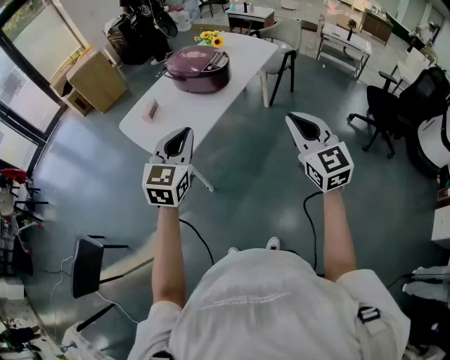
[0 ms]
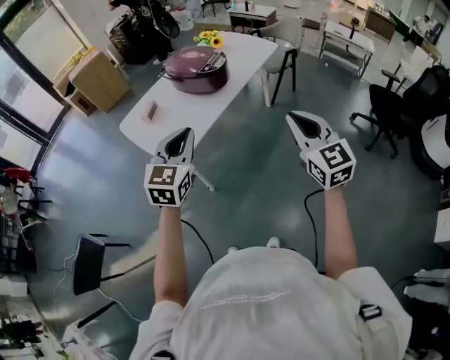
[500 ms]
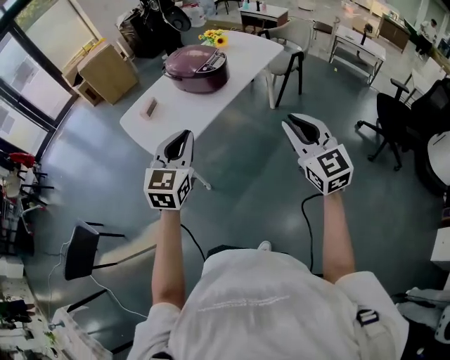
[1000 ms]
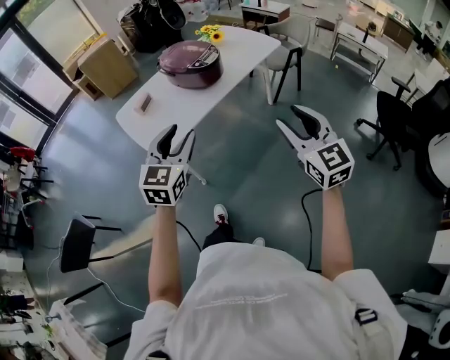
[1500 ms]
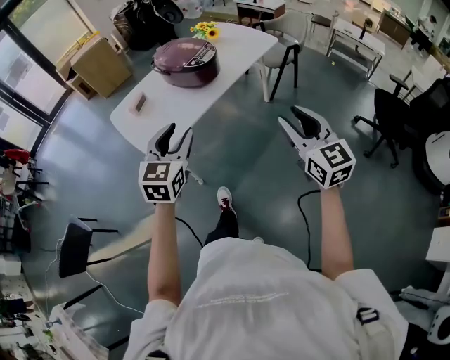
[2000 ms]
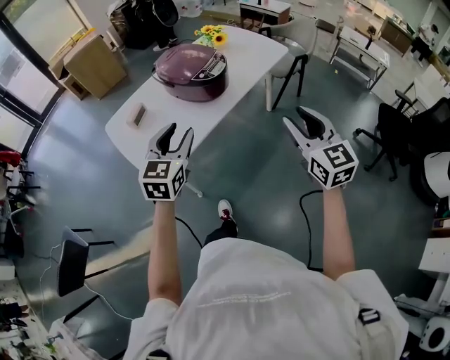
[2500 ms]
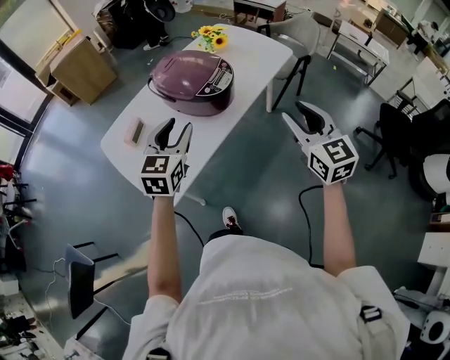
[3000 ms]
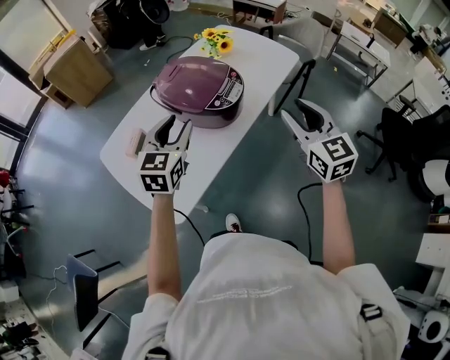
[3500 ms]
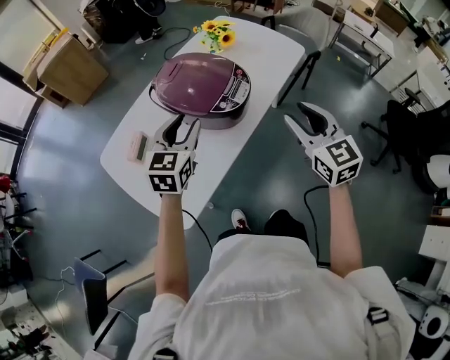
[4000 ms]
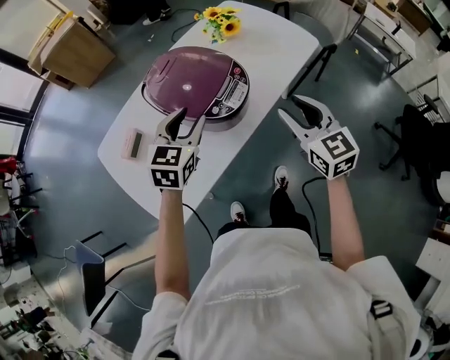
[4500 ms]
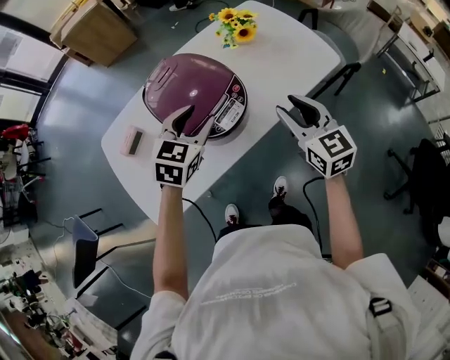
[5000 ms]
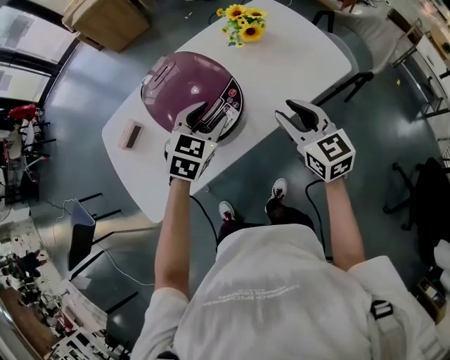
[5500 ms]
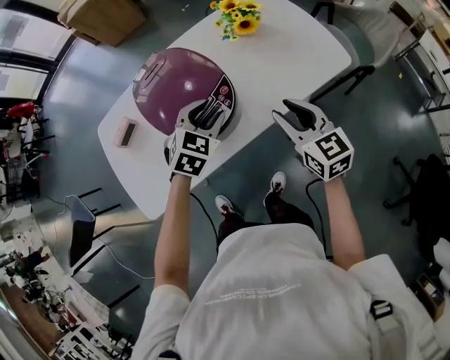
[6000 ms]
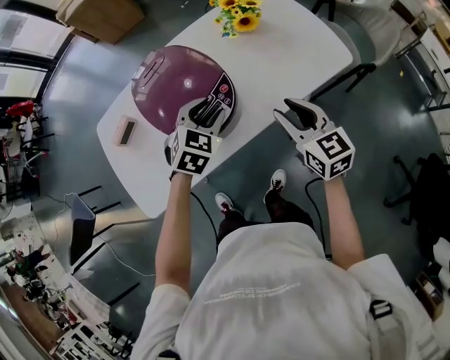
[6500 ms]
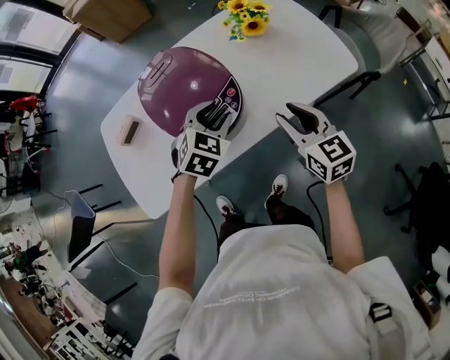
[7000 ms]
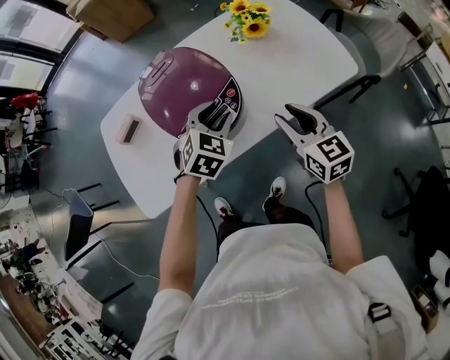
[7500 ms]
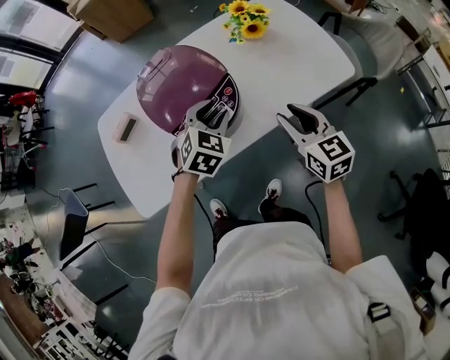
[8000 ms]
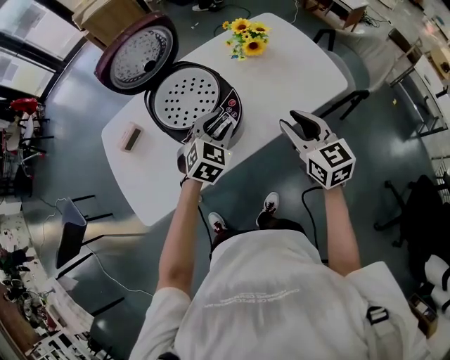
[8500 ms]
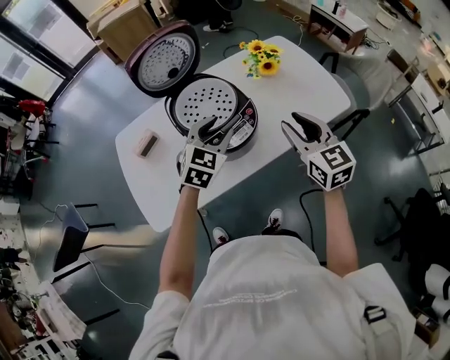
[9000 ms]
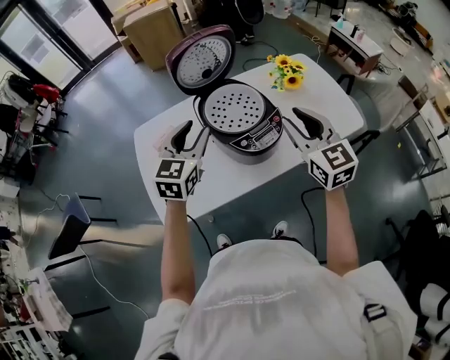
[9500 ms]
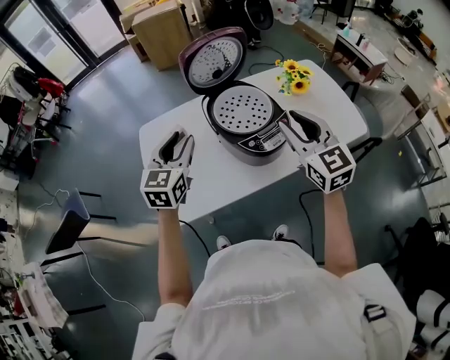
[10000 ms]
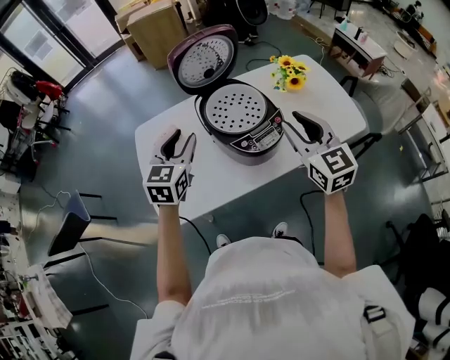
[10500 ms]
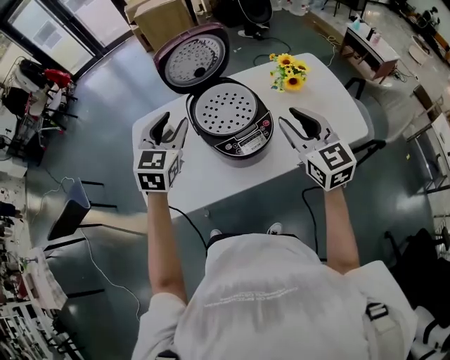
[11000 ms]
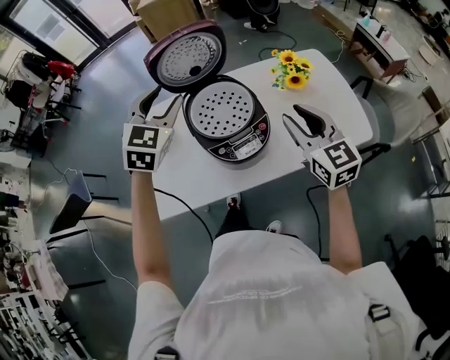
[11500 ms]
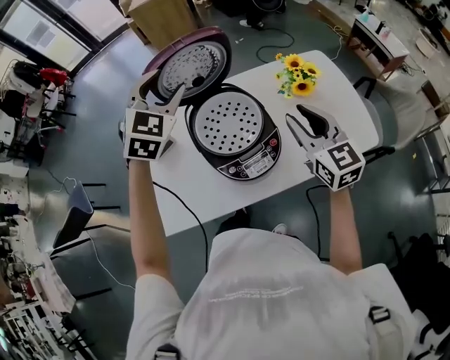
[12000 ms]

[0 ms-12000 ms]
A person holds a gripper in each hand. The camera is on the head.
0 ms to 2000 ms: The grippers both shift to the right by roughly 10 cm. The right gripper opens its fingers; the left gripper opens its fingers.
2000 ms to 4000 ms: The two grippers go approximately 35 cm forward.
4000 ms to 6000 ms: The right gripper is displaced forward, downward and to the right by some 25 cm, and swivels approximately 30 degrees. The left gripper goes roughly 25 cm to the right, forward and downward, and swivels about 30 degrees.
6000 ms to 8000 ms: The grippers make only small movements.
8000 ms to 10000 ms: The left gripper travels to the left and upward by some 30 cm, and rotates about 40 degrees; the right gripper moves upward and to the left, approximately 25 cm, and turns by some 20 degrees.
10000 ms to 12000 ms: The right gripper goes roughly 15 cm forward and to the right. The left gripper is displaced forward, to the right and upward by some 25 cm, and turns by approximately 40 degrees.

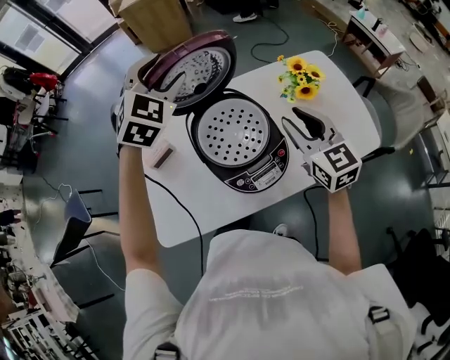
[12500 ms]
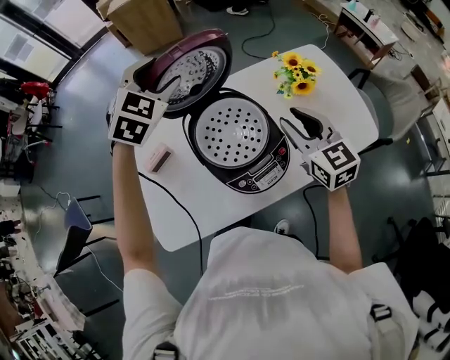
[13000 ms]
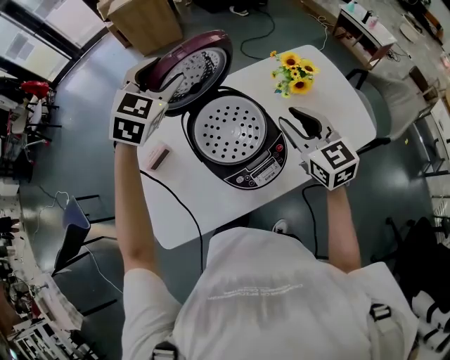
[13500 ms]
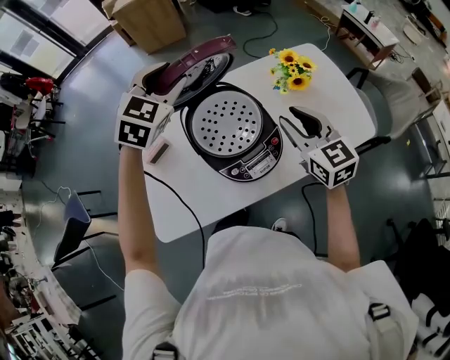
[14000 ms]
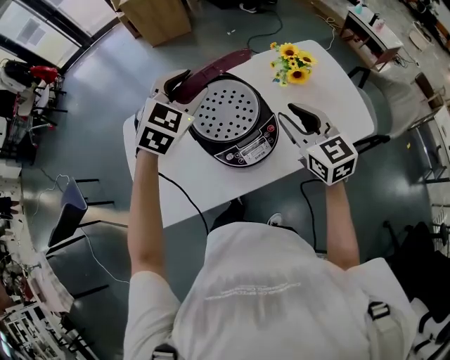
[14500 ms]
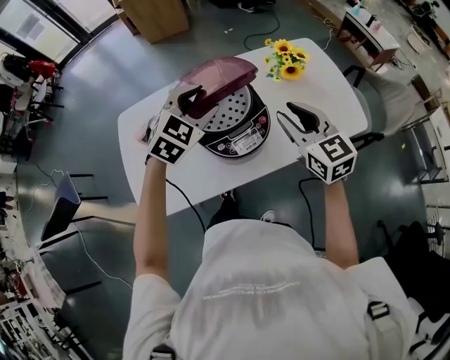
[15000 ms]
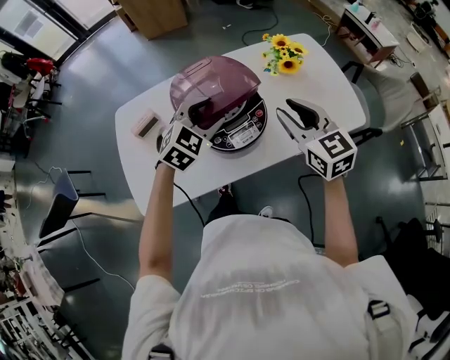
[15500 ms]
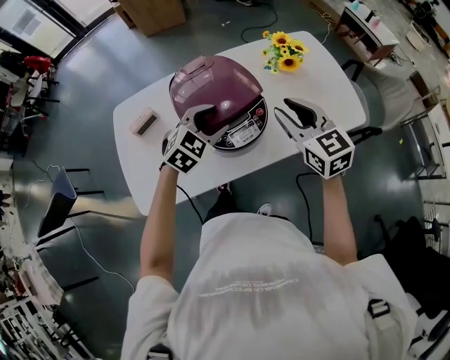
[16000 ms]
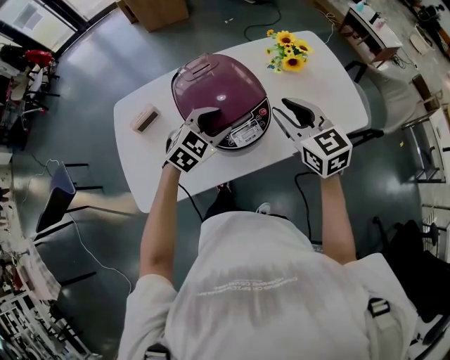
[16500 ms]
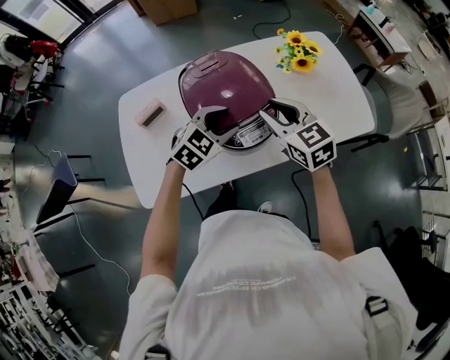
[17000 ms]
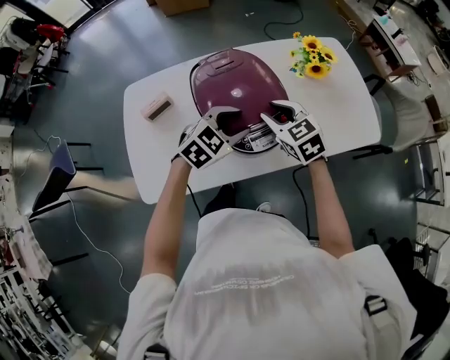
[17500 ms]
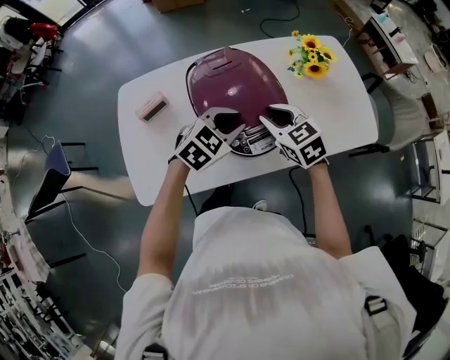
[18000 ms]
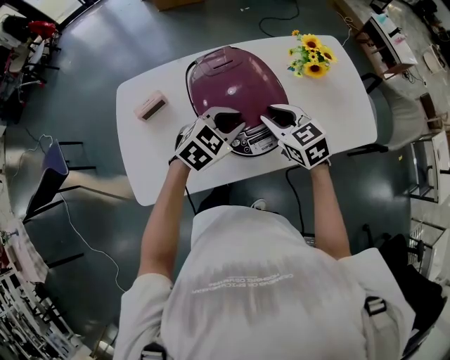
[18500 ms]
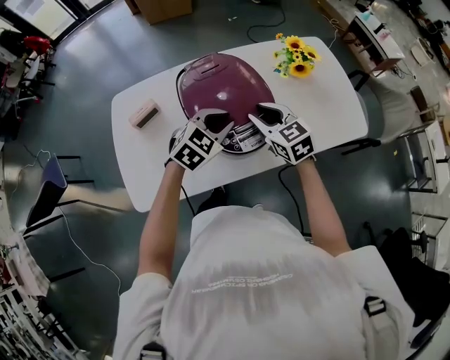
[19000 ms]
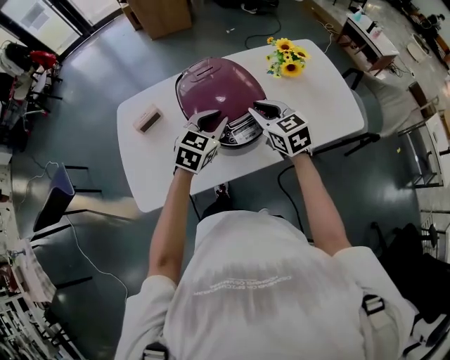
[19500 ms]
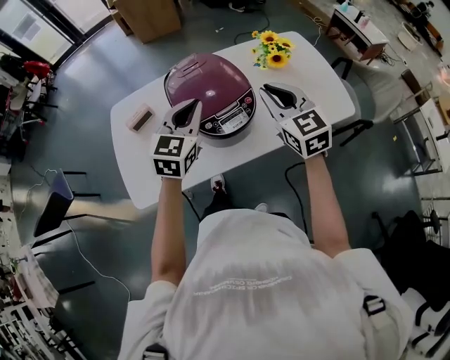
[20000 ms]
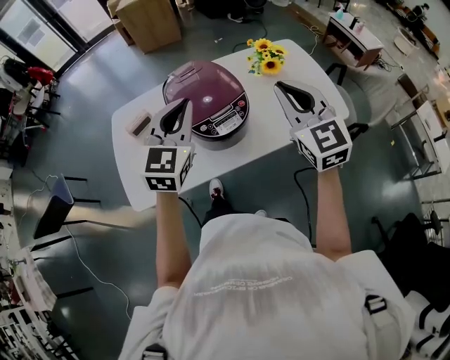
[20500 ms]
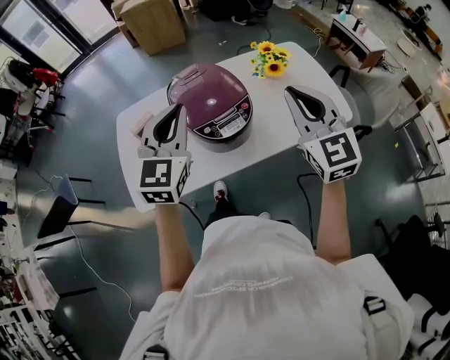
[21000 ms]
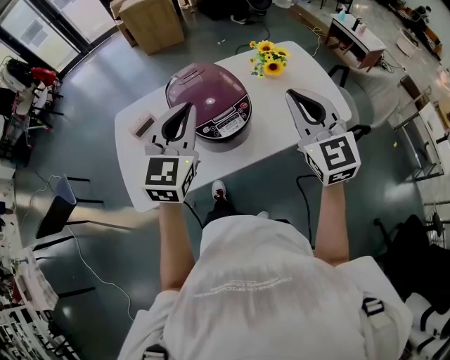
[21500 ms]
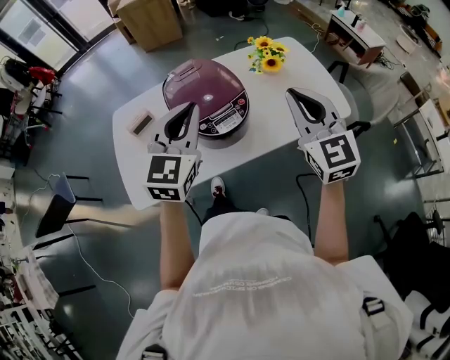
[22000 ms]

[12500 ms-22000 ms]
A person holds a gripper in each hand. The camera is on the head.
12500 ms to 14500 ms: The left gripper is displaced backward, downward and to the right by roughly 15 cm; the right gripper heads backward, covering some 5 cm.
14500 ms to 16500 ms: The left gripper shifts about 20 cm downward and backward.
16500 ms to 18000 ms: The right gripper moves downward and to the left, about 10 cm, and swivels about 20 degrees; the left gripper closes up.
18000 ms to 20000 ms: The right gripper is displaced upward and to the right by some 15 cm, and swivels some 30 degrees; the left gripper travels upward by about 10 cm, and swivels about 30 degrees.
20000 ms to 22000 ms: The left gripper travels upward and backward by roughly 10 cm. Meanwhile the right gripper goes approximately 10 cm upward, backward and to the right.

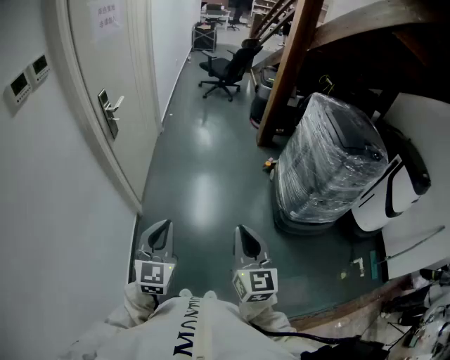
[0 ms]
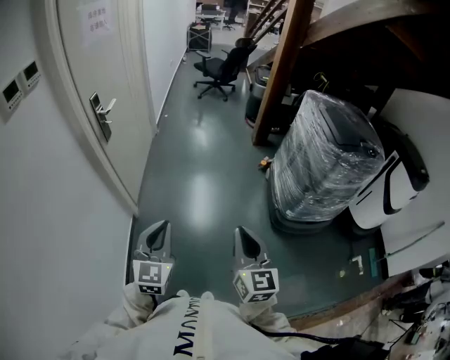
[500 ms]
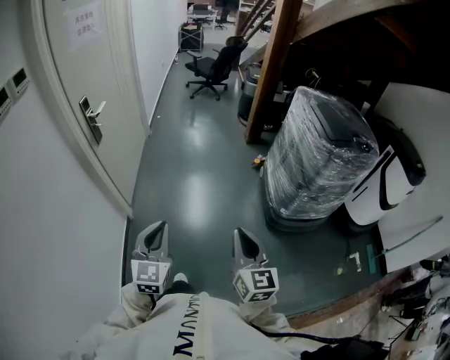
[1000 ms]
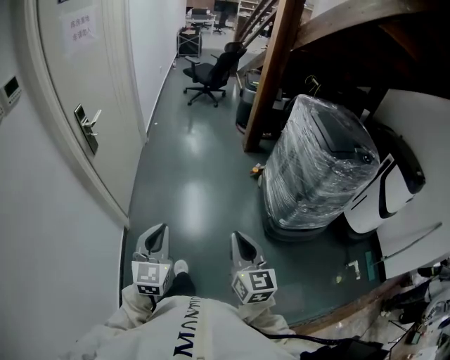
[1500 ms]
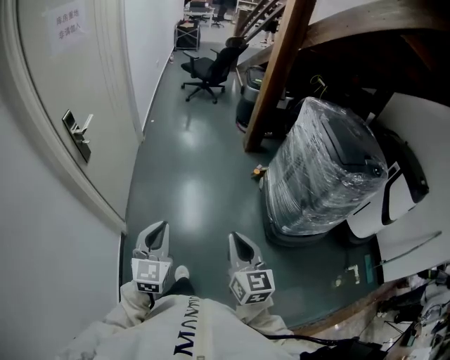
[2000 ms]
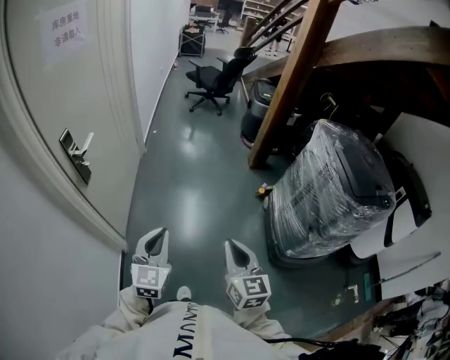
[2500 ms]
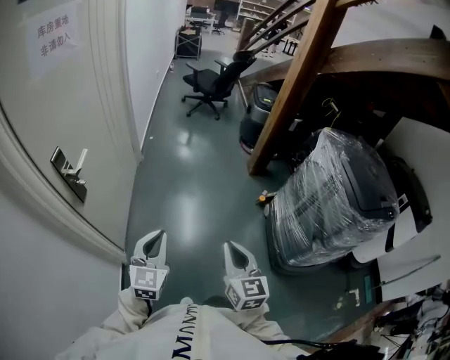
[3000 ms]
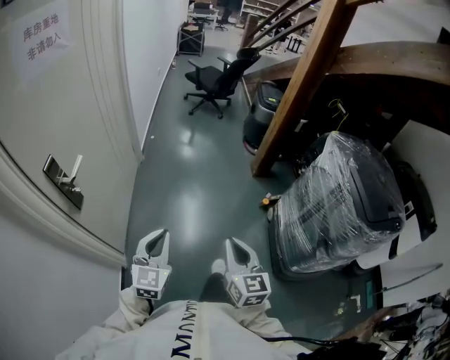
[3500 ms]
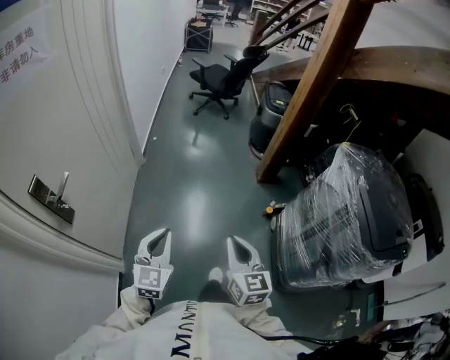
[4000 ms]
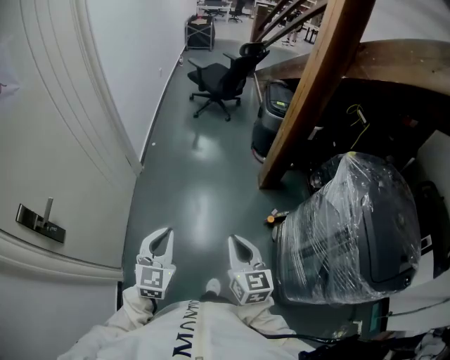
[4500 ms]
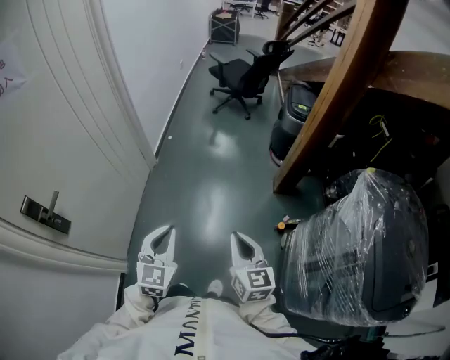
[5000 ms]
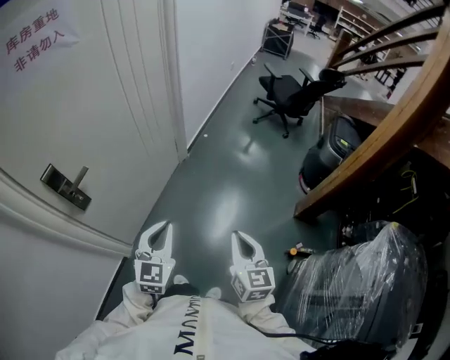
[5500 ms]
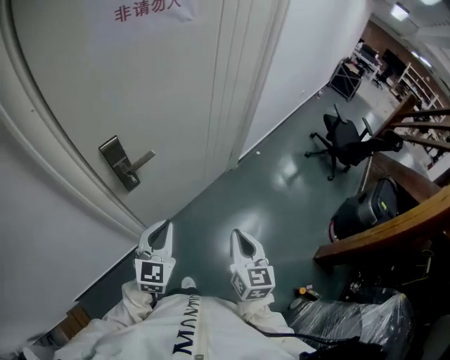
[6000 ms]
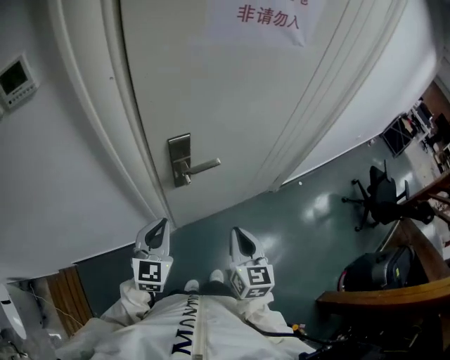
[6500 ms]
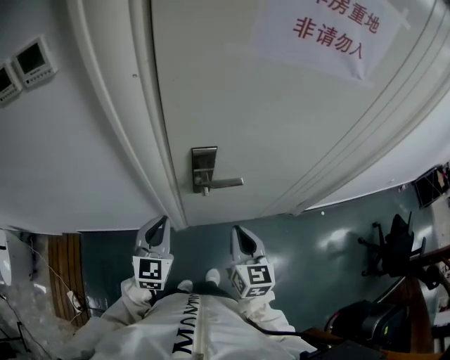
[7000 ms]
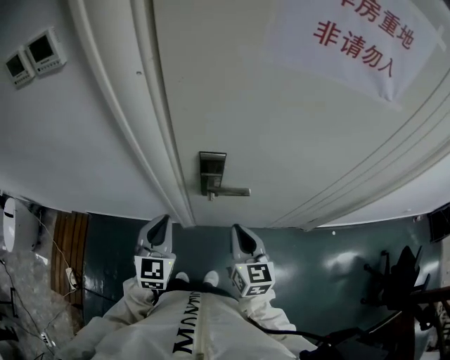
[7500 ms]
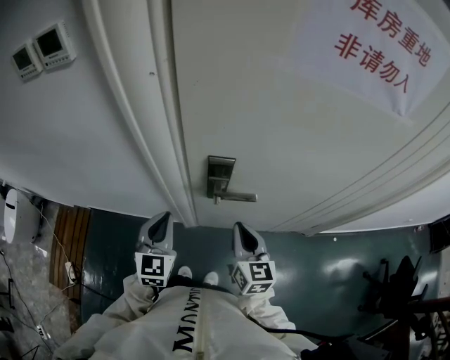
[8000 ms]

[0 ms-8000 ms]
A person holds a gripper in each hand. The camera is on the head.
0 ms to 2000 ms: Both grippers move forward, some 15 cm.
2000 ms to 4000 ms: The two grippers go about 30 cm forward.
4000 ms to 6000 ms: The right gripper shifts by approximately 30 cm, and swivels roughly 40 degrees. The left gripper ends up approximately 20 cm from where it was, and rotates roughly 40 degrees.
6000 ms to 8000 ms: The left gripper shifts by some 20 cm, and rotates about 50 degrees, while the right gripper ends up roughly 30 cm from where it was, and turns by about 50 degrees.
